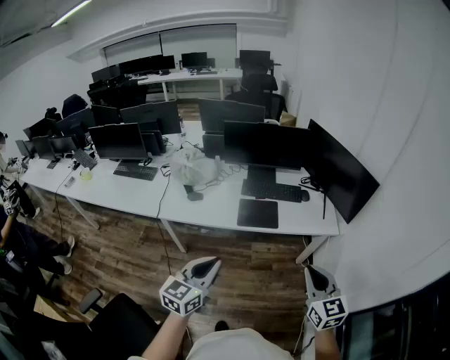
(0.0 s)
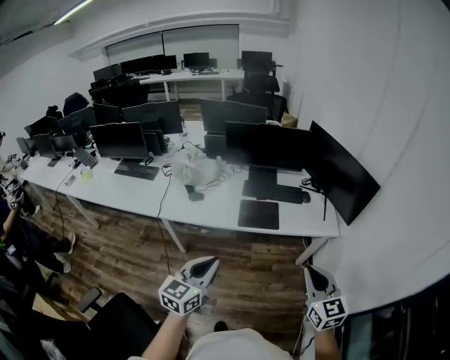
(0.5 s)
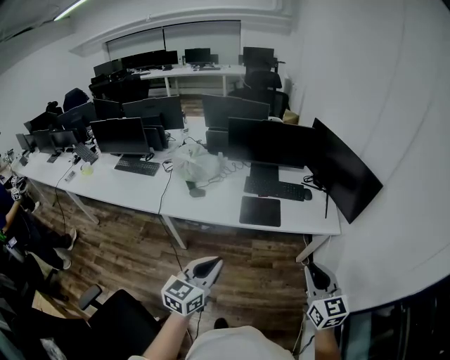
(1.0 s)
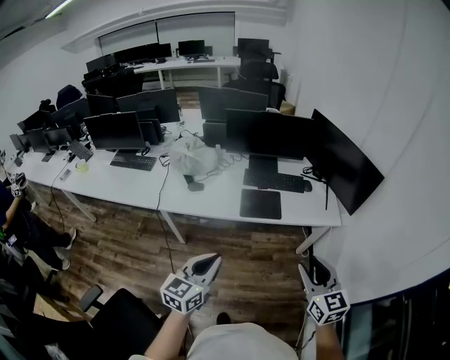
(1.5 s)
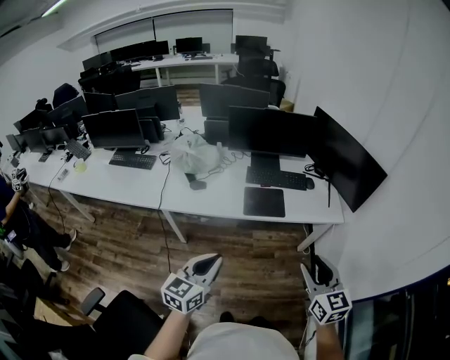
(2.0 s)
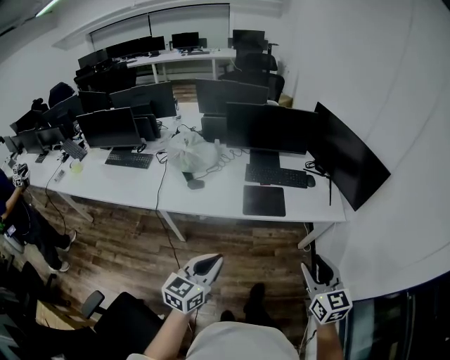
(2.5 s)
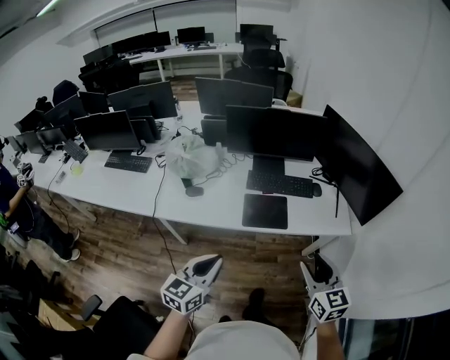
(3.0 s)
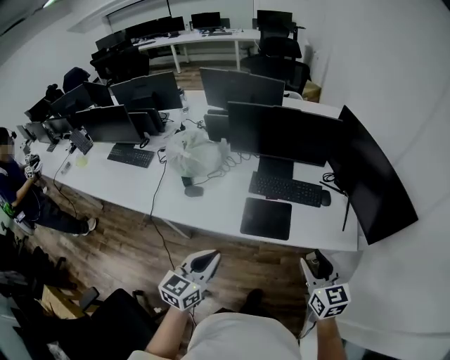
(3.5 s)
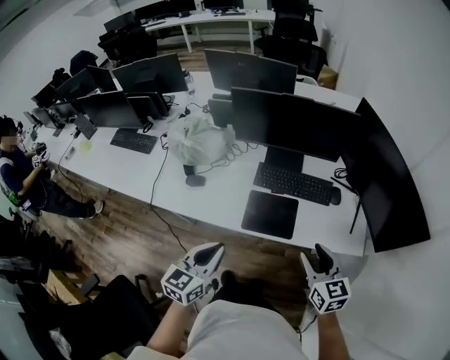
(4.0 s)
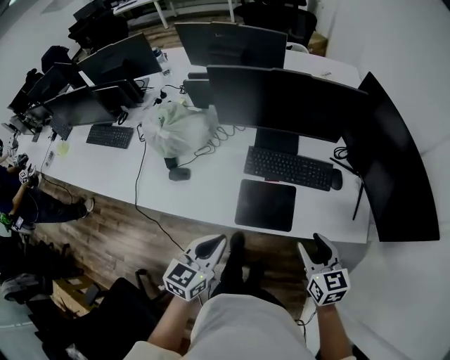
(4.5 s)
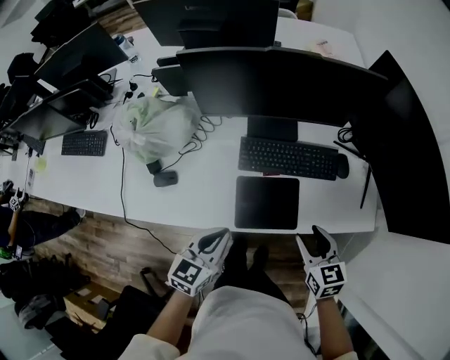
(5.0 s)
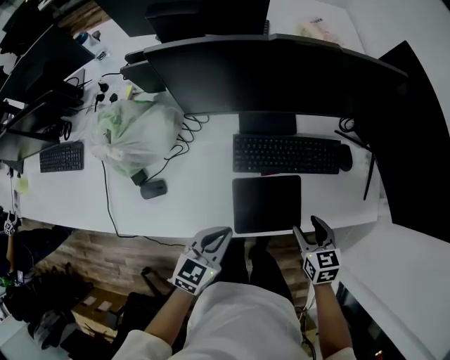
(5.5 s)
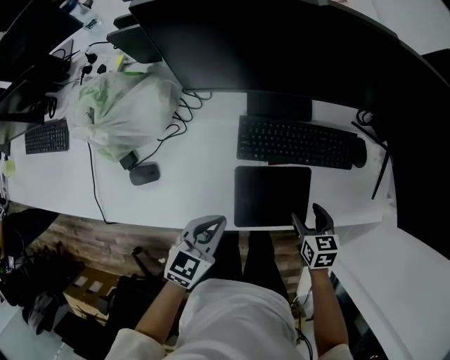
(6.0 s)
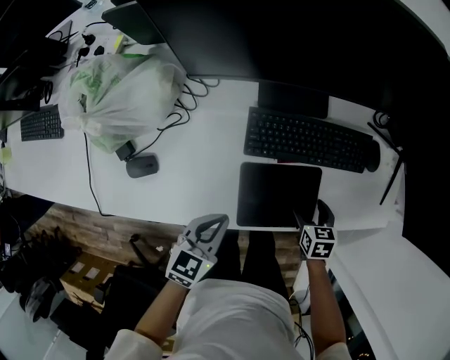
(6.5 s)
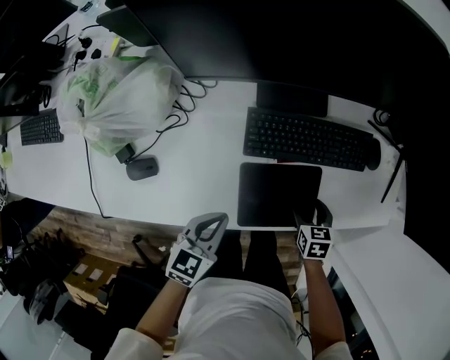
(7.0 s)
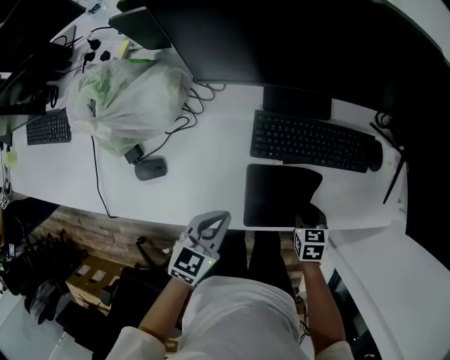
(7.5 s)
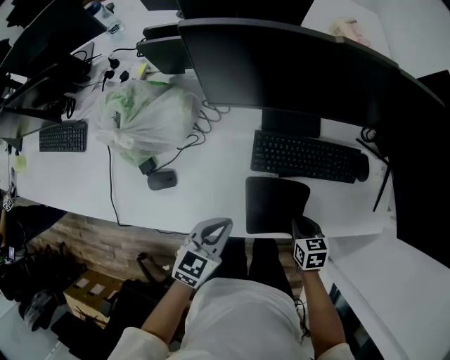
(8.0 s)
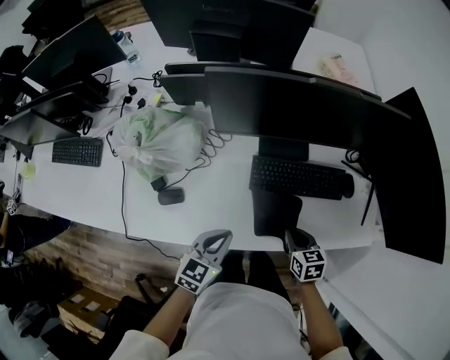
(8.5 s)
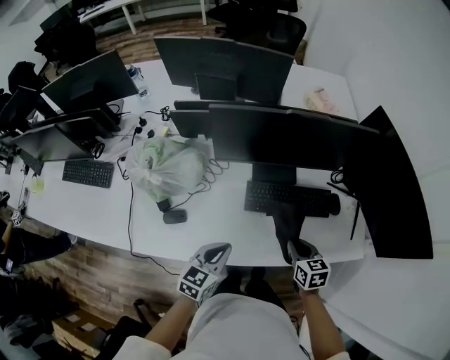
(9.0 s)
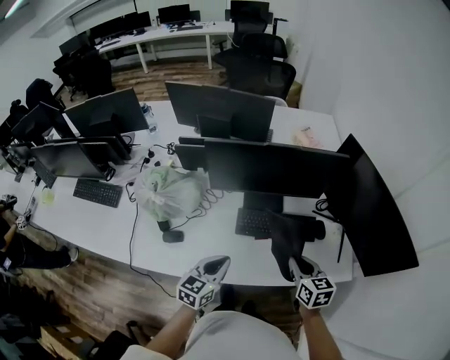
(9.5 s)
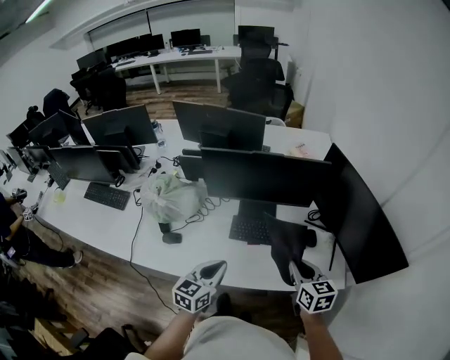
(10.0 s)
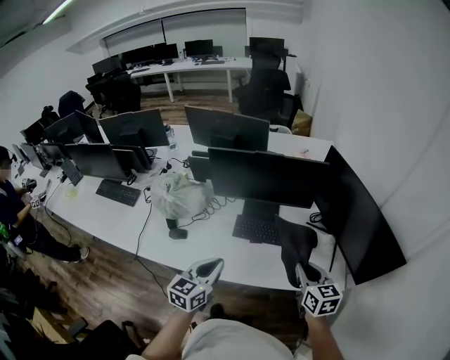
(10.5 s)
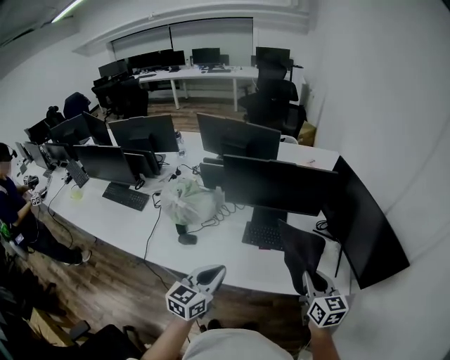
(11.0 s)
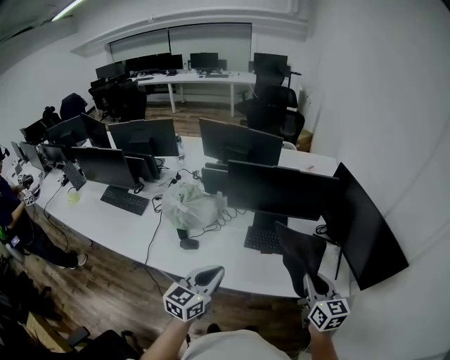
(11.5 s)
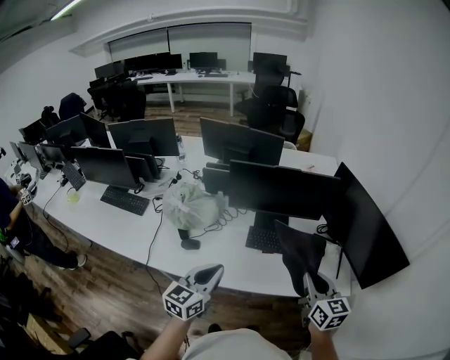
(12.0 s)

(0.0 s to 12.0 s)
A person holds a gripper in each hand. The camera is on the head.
0.0 s - 2.0 s: Both grippers move to the left, about 5 cm. The right gripper opens up.
2.0 s - 4.0 s: The grippers both shift forward by roughly 30 cm.
4.0 s - 6.0 s: The grippers both shift downward and forward by approximately 35 cm. The left gripper swivels roughly 30 degrees; the right gripper tips its fingers downward by roughly 30 degrees.
6.0 s - 8.0 s: The right gripper shifts by roughly 5 cm, and closes its fingers.
8.0 s - 10.0 s: The left gripper is displaced upward by some 20 cm, while the right gripper heads upward, covering about 35 cm, and angles its fingers upward, by some 30 degrees.
10.0 s - 12.0 s: The right gripper goes approximately 10 cm backward and upward. Meanwhile the left gripper travels upward, to the left and backward by roughly 15 cm.

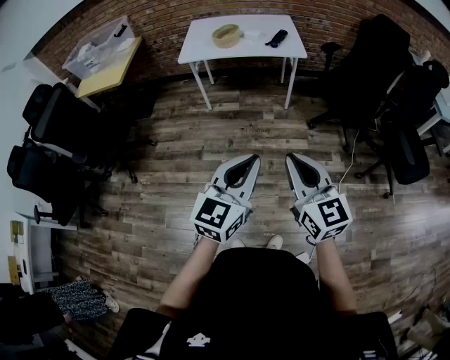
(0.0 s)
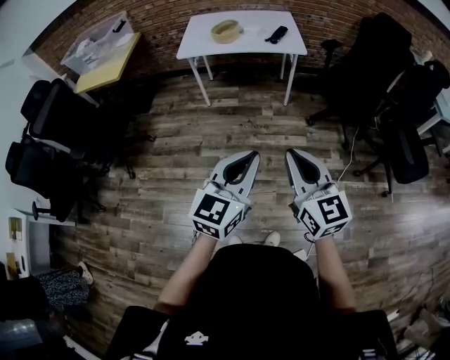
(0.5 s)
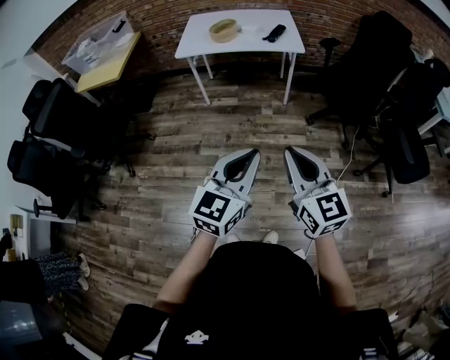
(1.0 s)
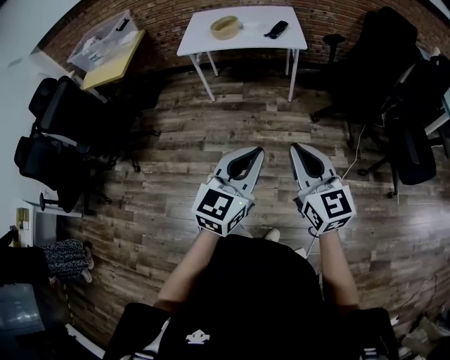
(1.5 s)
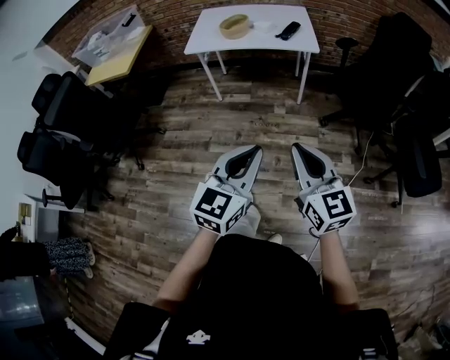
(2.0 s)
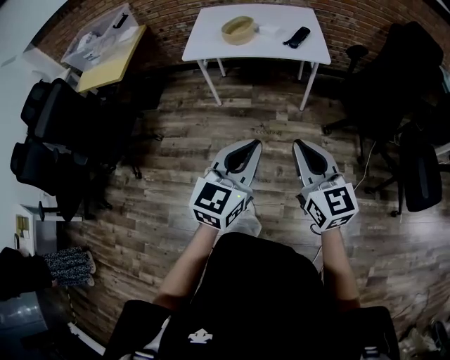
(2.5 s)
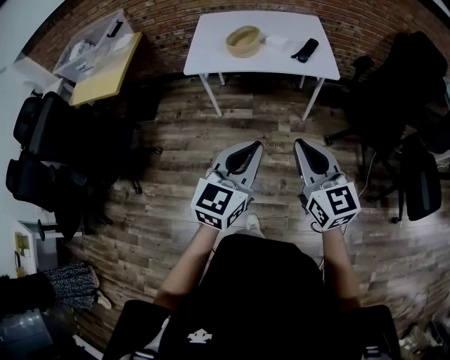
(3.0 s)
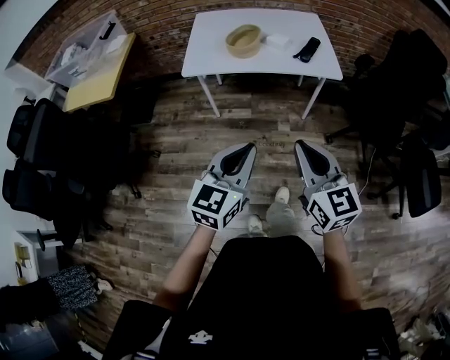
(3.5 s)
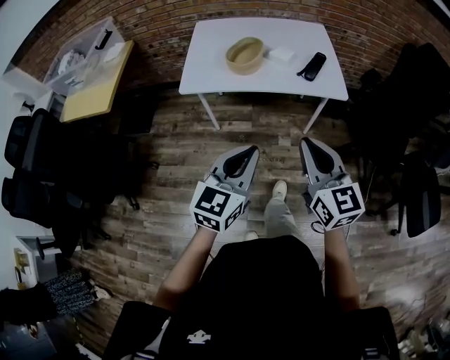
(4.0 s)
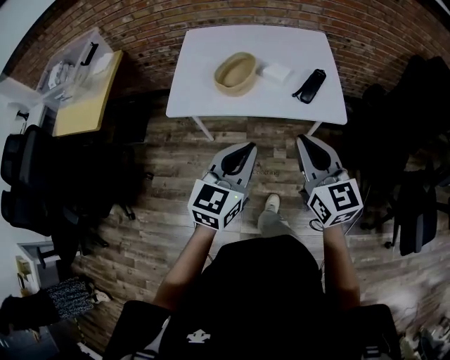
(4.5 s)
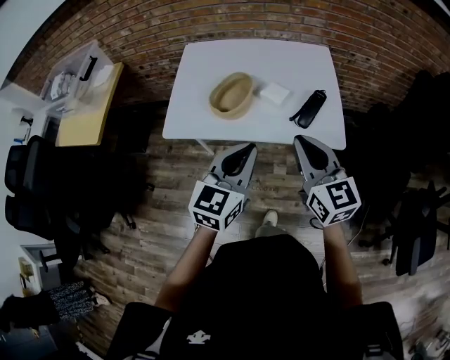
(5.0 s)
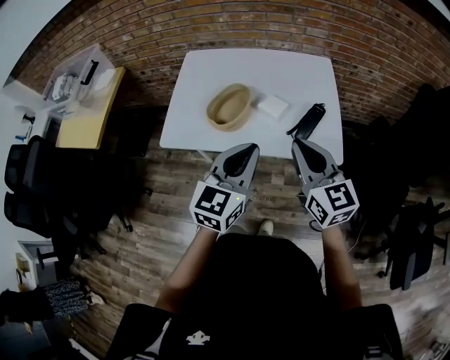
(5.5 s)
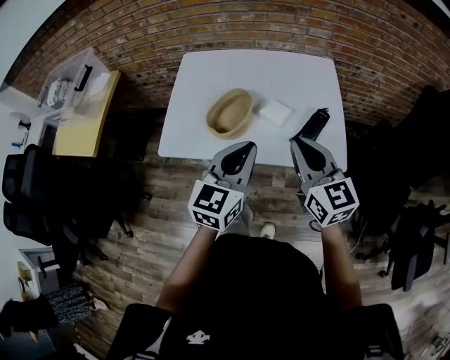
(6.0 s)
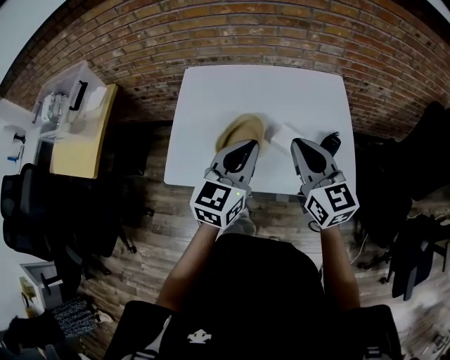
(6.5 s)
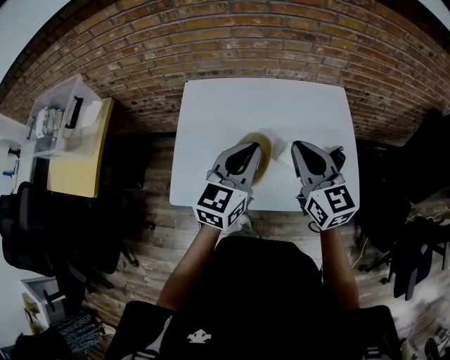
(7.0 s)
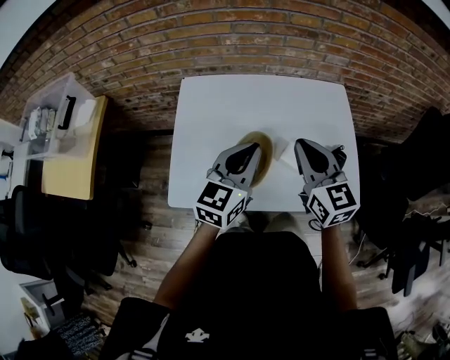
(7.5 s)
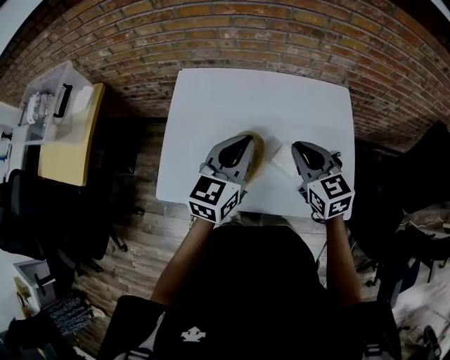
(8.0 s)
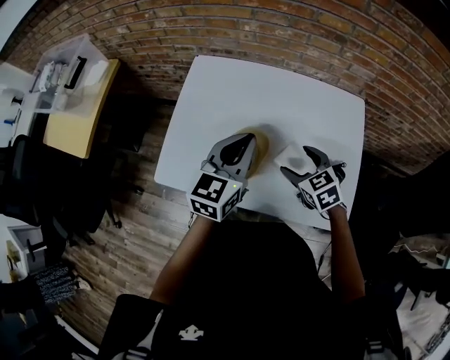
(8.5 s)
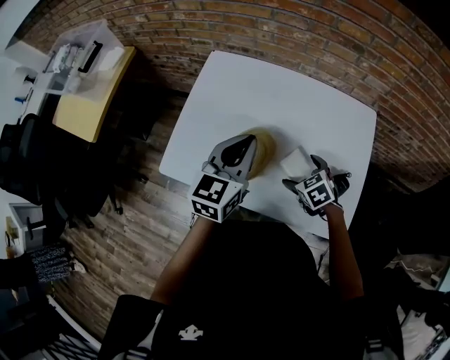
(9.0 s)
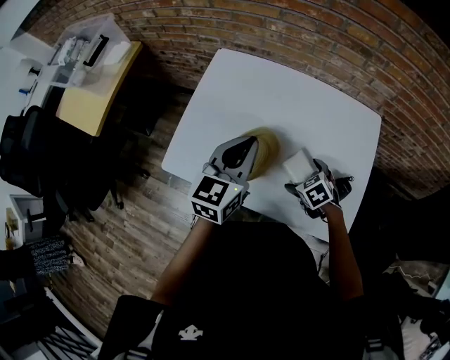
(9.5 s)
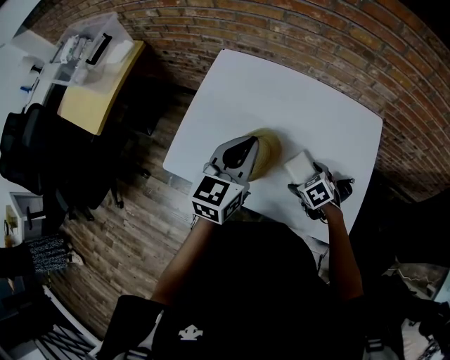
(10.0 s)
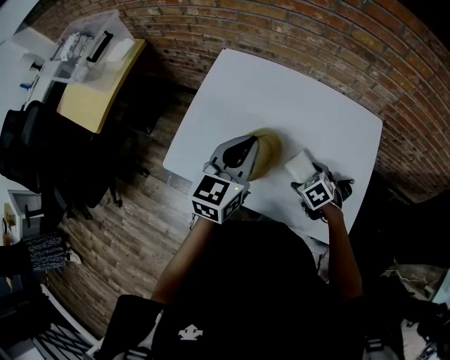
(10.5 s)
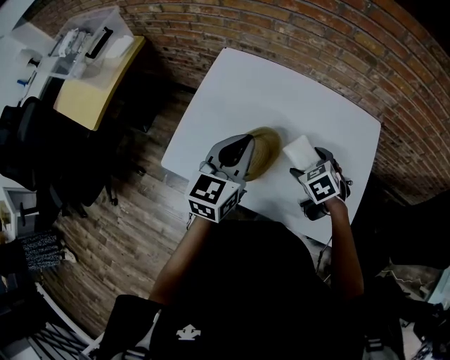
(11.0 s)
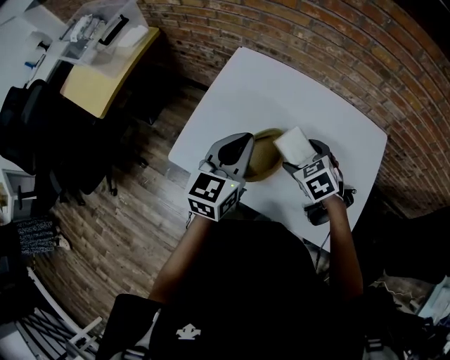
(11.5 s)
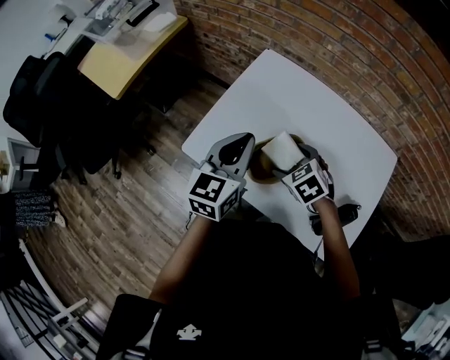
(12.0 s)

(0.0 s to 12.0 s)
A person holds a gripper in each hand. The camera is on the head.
0.0 s - 2.0 s: The two grippers go roughly 5 cm forward.
2.0 s - 4.0 s: Both grippers travel together forward, about 35 cm.
4.0 s - 6.0 s: Both grippers travel together forward, roughly 30 cm.
6.0 s - 8.0 s: The grippers both shift forward by approximately 20 cm.
8.0 s - 10.0 s: The right gripper moves downward, approximately 20 cm, tips its fingers downward by roughly 40 degrees, and opens its fingers.
10.0 s - 12.0 s: The right gripper shifts some 20 cm to the left, upward and forward, and changes its angle by some 20 degrees, while the left gripper is displaced to the left by approximately 10 cm.

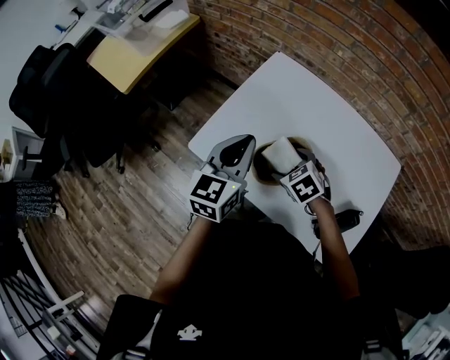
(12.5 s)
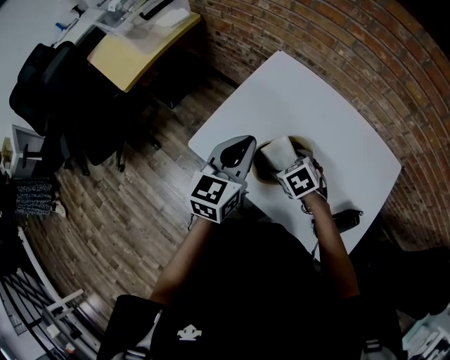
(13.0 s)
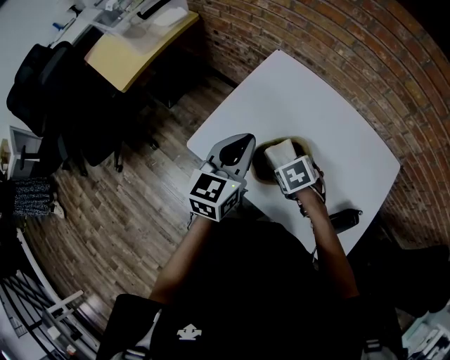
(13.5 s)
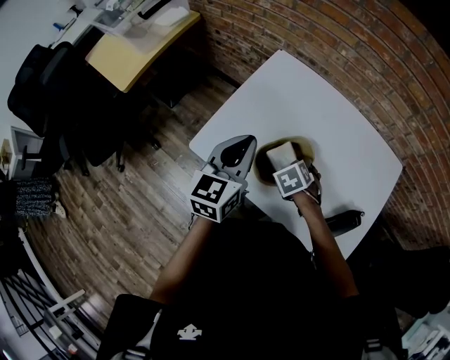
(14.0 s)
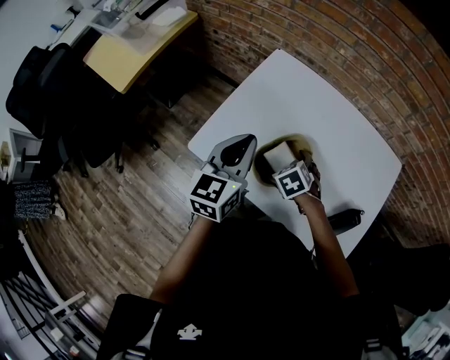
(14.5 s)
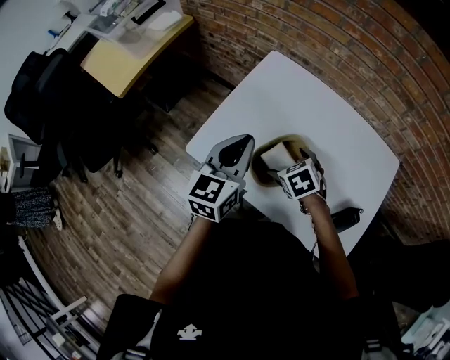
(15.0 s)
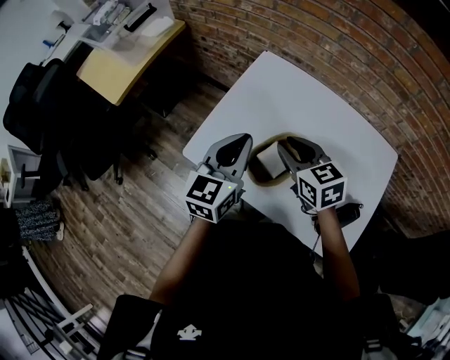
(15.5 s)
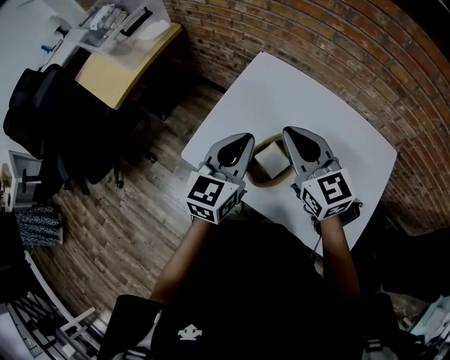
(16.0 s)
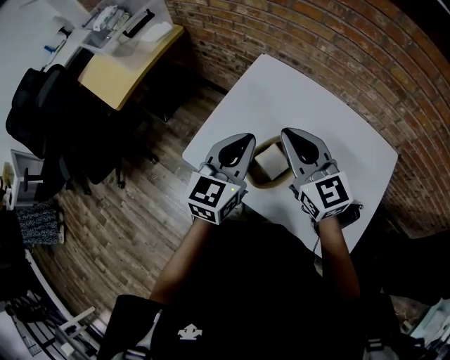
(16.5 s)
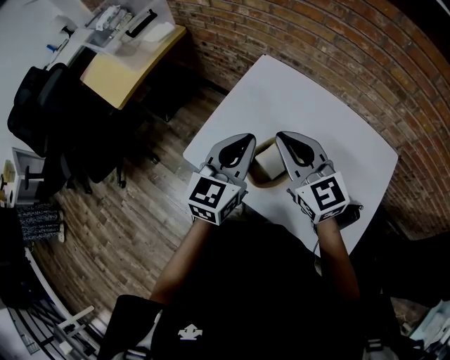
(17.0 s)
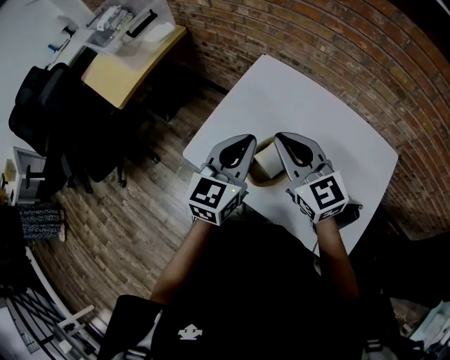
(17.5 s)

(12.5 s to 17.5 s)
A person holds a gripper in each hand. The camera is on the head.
15.0 s - 17.5 s: The right gripper moves upward, about 20 cm, points its fingers about 50 degrees further upward, and closes up.
